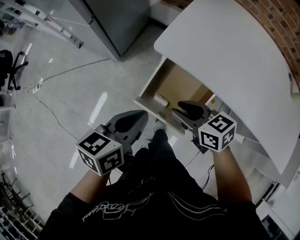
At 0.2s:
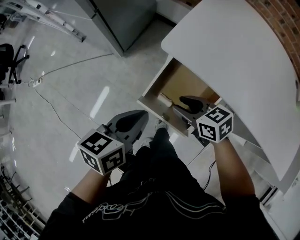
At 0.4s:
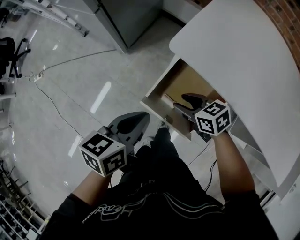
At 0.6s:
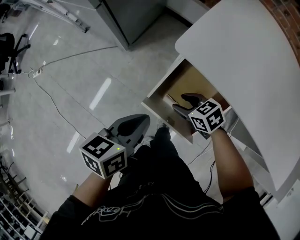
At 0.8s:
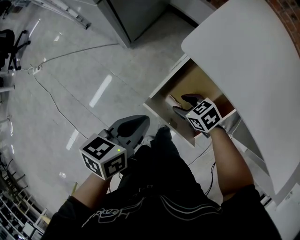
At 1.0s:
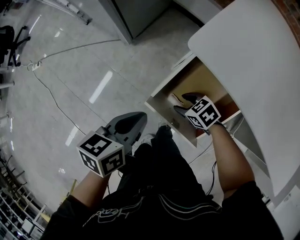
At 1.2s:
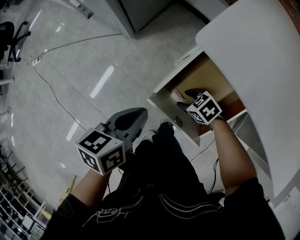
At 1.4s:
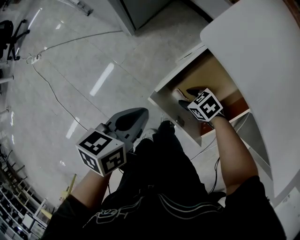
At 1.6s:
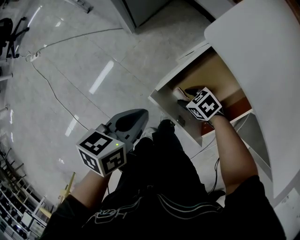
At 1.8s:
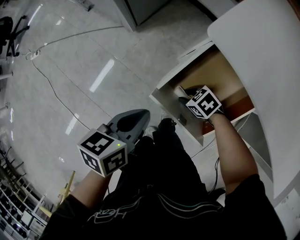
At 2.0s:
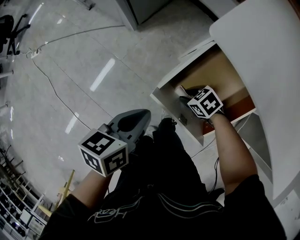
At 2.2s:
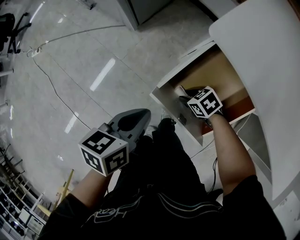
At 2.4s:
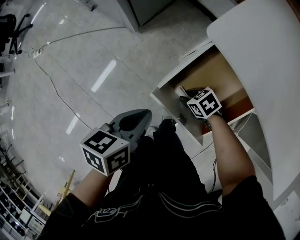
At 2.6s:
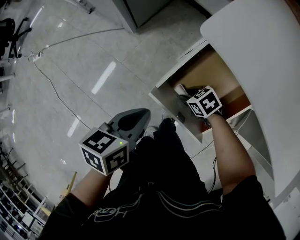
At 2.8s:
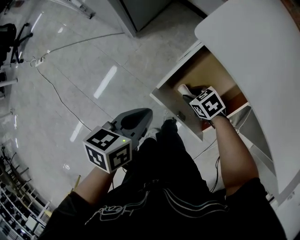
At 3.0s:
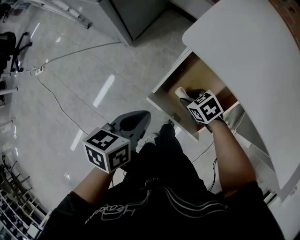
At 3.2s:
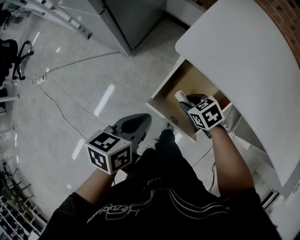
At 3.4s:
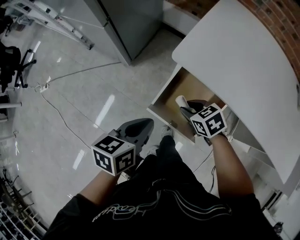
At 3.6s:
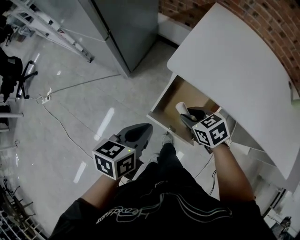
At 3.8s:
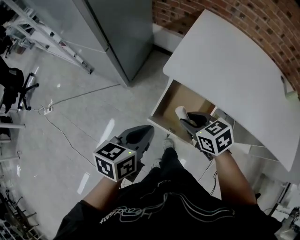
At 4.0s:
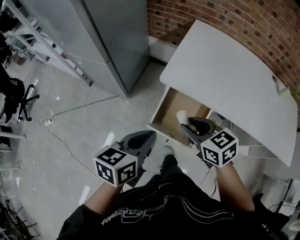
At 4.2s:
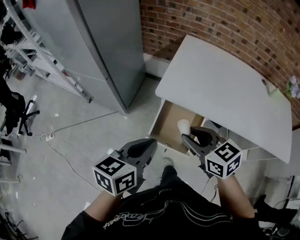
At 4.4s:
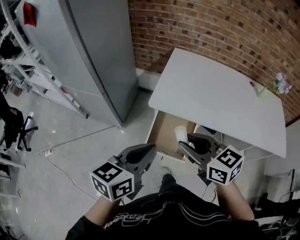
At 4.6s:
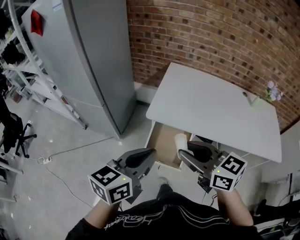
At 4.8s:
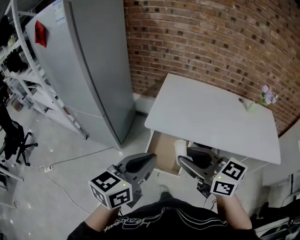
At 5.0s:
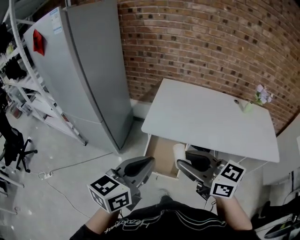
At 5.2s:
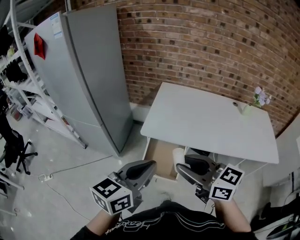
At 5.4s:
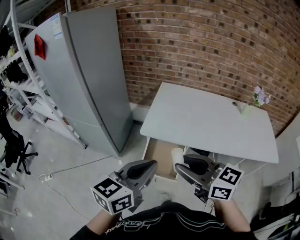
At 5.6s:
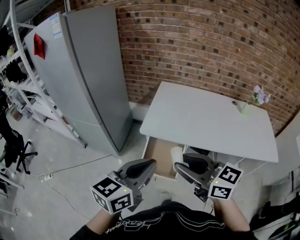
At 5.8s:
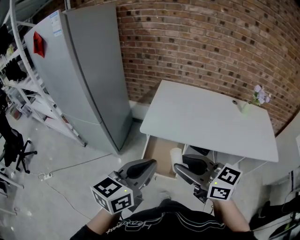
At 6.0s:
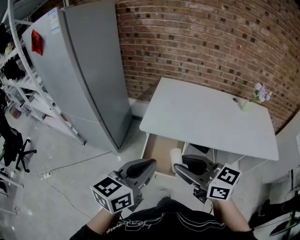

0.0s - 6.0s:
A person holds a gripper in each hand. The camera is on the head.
0.0s - 1.6s: The right gripper moves downward, roughly 35 cm, and turns by approximately 40 degrees; the left gripper shifts roughly 20 cm downward.
1.6s - 3.0s: The left gripper travels upward by about 5 cm. The right gripper shifts about 10 cm upward, and closes its fingers.
3.0s - 4.4s: Both grippers move upward, approximately 40 cm. The left gripper turns by roughly 40 degrees. The right gripper angles its fingers upward, by about 40 degrees.
4.4s - 6.0s: The two grippers go about 10 cm upward and backward.

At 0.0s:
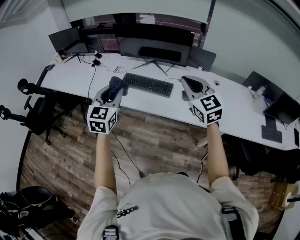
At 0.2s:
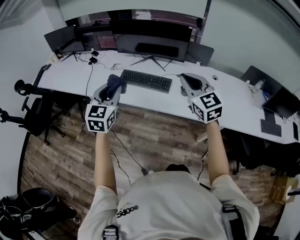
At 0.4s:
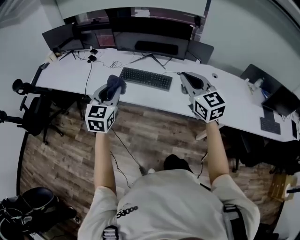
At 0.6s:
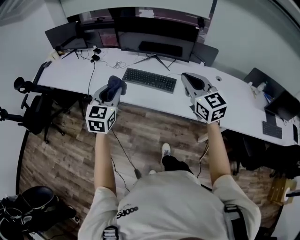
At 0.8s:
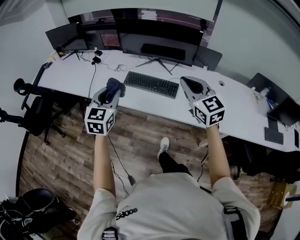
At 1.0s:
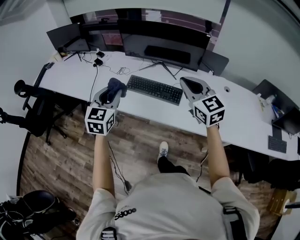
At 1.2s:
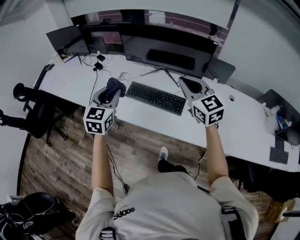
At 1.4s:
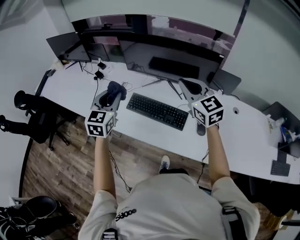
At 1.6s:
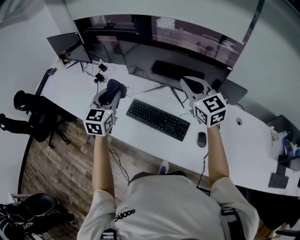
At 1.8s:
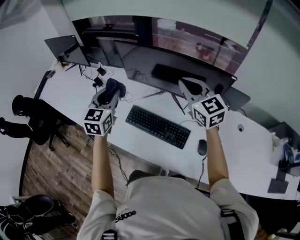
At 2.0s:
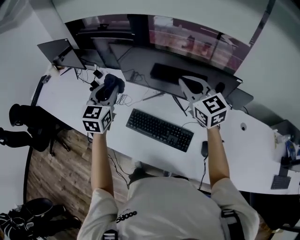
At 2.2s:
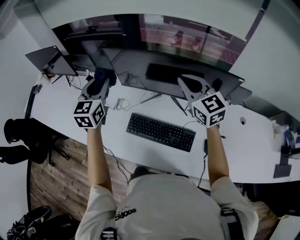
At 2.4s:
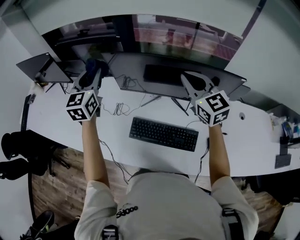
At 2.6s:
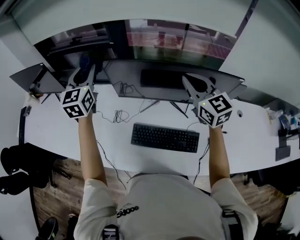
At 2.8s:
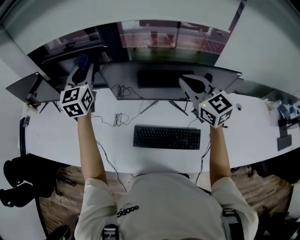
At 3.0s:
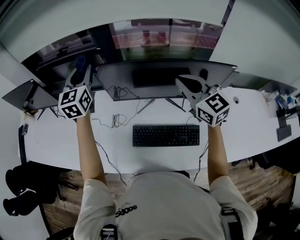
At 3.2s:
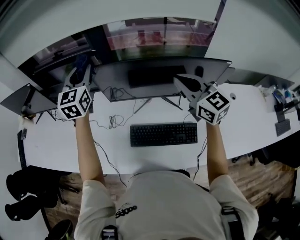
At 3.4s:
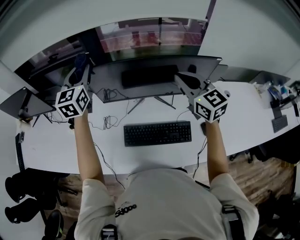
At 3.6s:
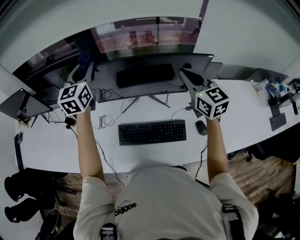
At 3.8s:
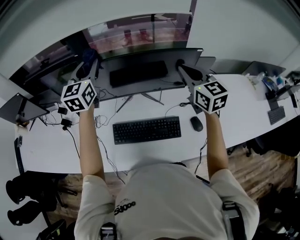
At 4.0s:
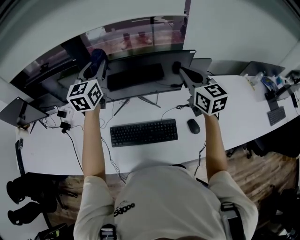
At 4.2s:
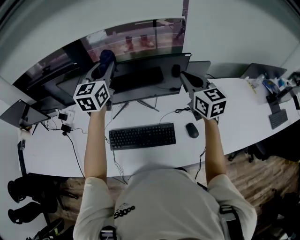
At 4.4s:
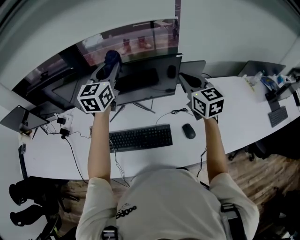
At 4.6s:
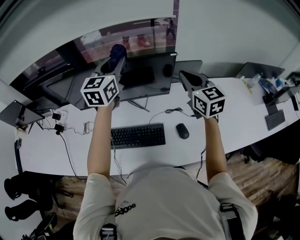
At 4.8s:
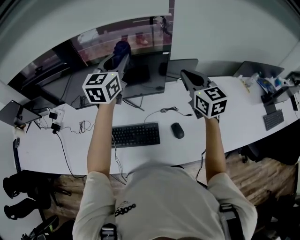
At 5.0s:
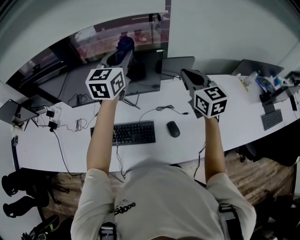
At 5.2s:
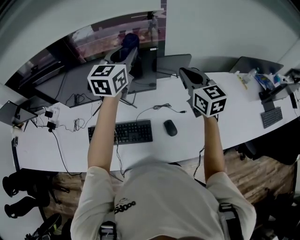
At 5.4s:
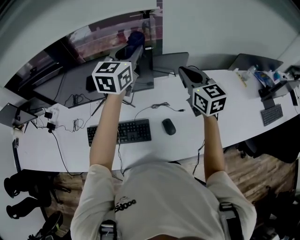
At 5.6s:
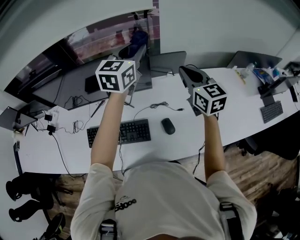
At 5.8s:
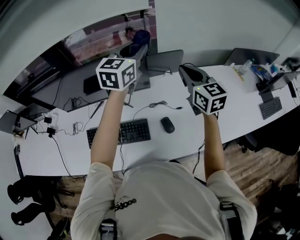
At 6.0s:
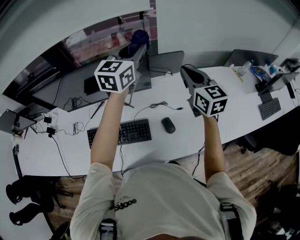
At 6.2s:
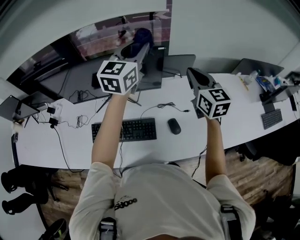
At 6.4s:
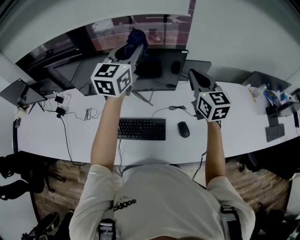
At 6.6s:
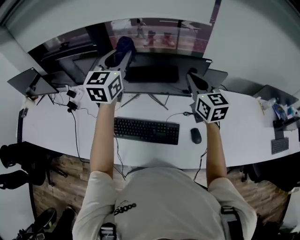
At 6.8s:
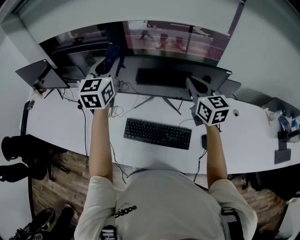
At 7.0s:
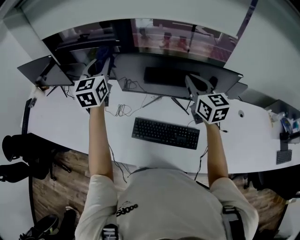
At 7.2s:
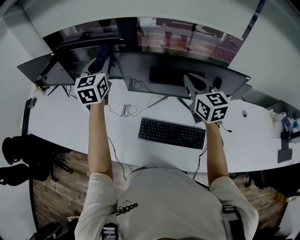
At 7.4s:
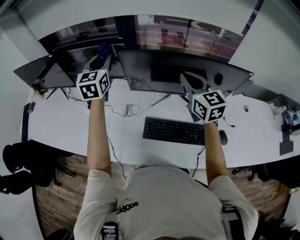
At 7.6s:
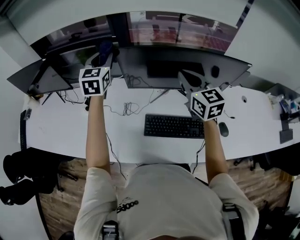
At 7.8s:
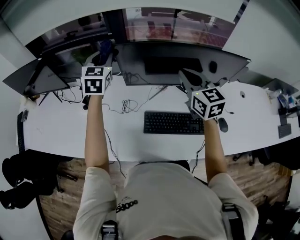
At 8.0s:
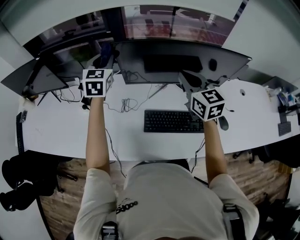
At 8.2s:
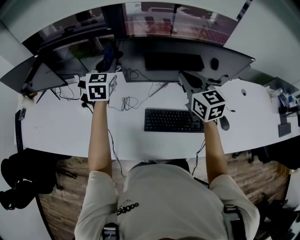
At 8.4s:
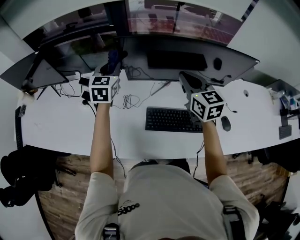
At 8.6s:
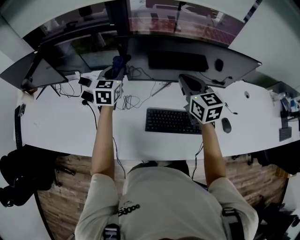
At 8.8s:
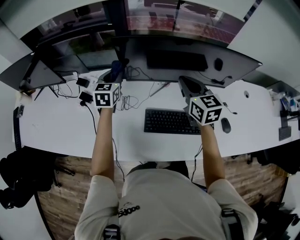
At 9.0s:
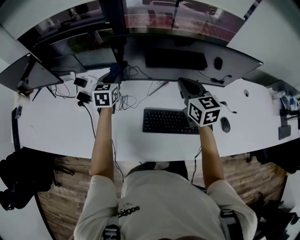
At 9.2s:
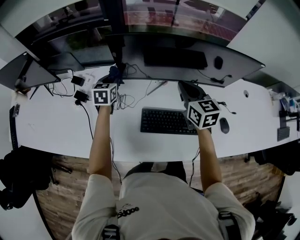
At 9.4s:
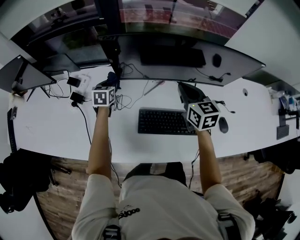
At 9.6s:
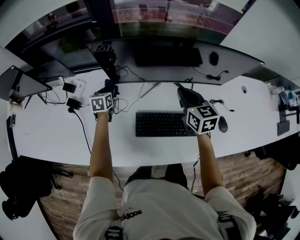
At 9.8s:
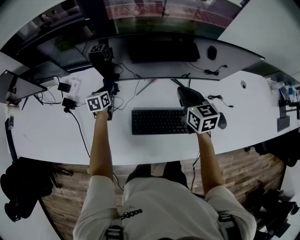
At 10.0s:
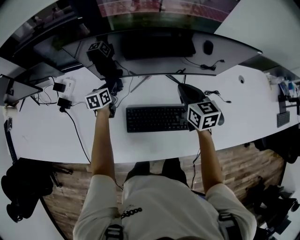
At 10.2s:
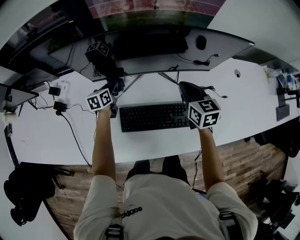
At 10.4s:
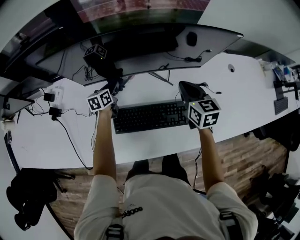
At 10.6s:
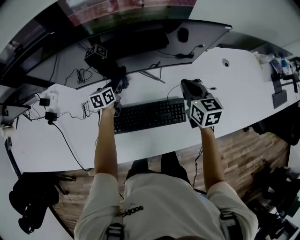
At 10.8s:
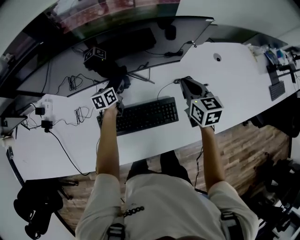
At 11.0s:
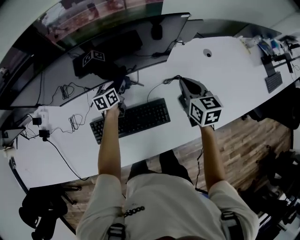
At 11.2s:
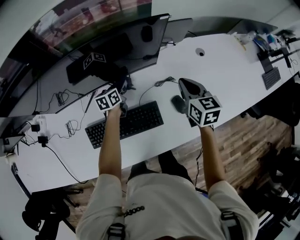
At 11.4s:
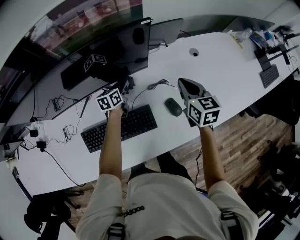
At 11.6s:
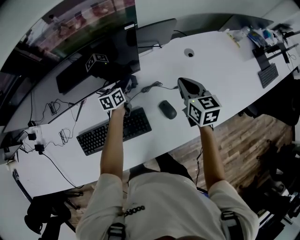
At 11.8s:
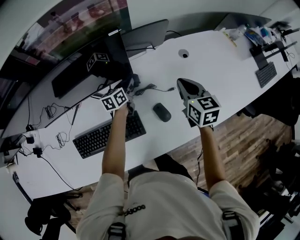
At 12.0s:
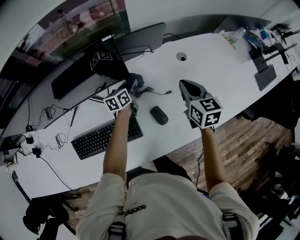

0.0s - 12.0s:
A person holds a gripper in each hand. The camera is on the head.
0.0s - 1.6s: The two grippers go roughly 40 cm forward.
1.6s - 3.0s: The left gripper moves forward, roughly 35 cm, while the right gripper is displaced forward by about 15 cm.
3.0s - 4.4s: Both grippers move to the right, some 30 cm. The left gripper turns by some 20 degrees, while the right gripper swivels about 20 degrees.
4.4s - 6.0s: The right gripper is displaced to the right by approximately 15 cm; the left gripper moves to the right, roughly 25 cm.
6.0s - 7.6s: Both grippers are carried approximately 60 cm. The left gripper changes its angle by approximately 40 degrees.
7.6s - 9.0s: The left gripper goes some 20 cm downward, and changes its angle by approximately 20 degrees. Meanwhile the right gripper heads downward, covering approximately 10 cm.
9.0s - 10.4s: The two grippers go approximately 25 cm to the right and downward. The left gripper swivels approximately 30 degrees.
10.4s - 12.0s: Both grippers move to the right, approximately 40 cm.

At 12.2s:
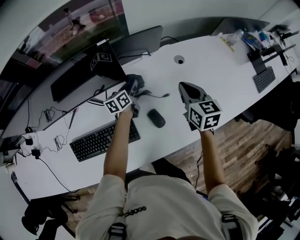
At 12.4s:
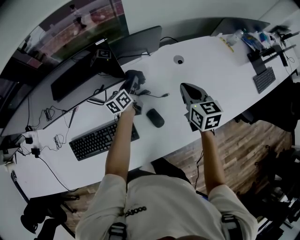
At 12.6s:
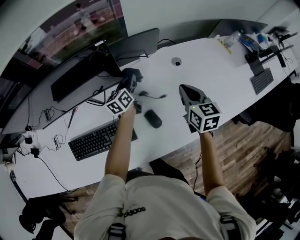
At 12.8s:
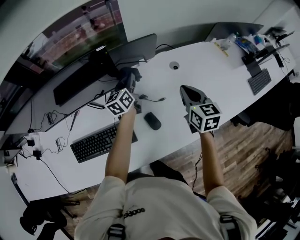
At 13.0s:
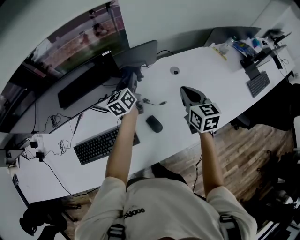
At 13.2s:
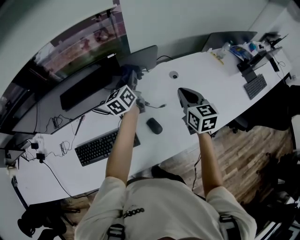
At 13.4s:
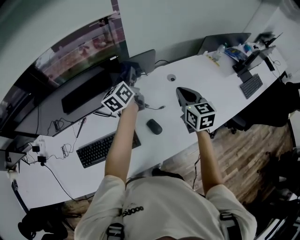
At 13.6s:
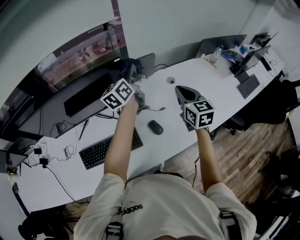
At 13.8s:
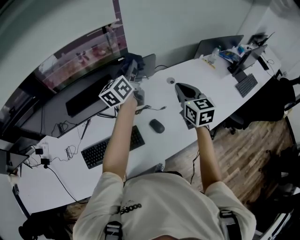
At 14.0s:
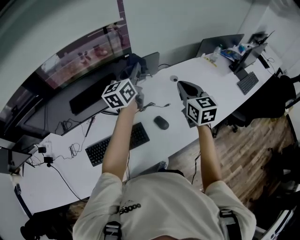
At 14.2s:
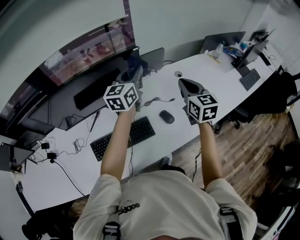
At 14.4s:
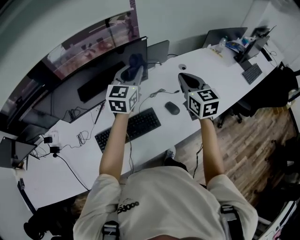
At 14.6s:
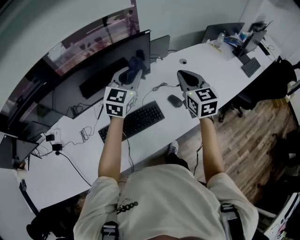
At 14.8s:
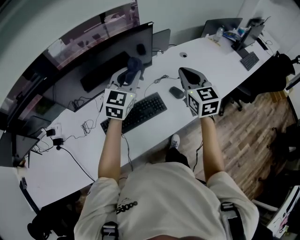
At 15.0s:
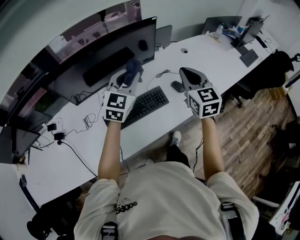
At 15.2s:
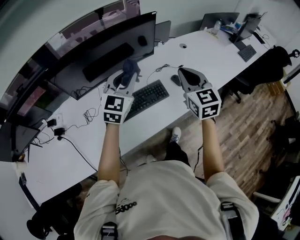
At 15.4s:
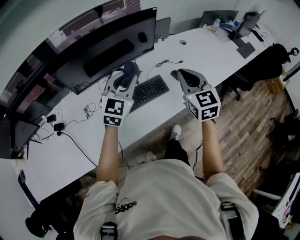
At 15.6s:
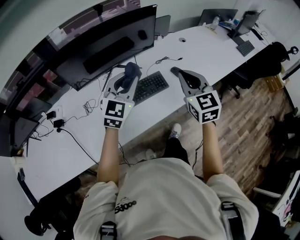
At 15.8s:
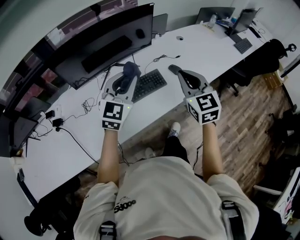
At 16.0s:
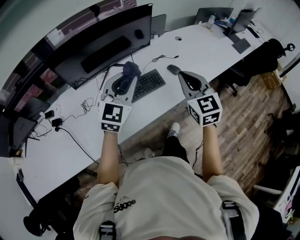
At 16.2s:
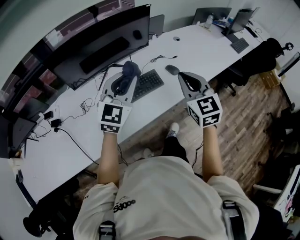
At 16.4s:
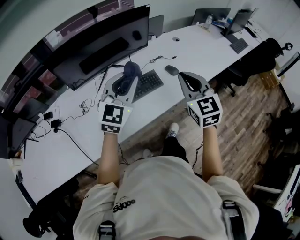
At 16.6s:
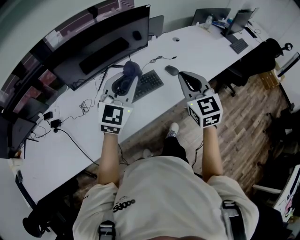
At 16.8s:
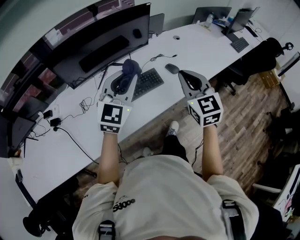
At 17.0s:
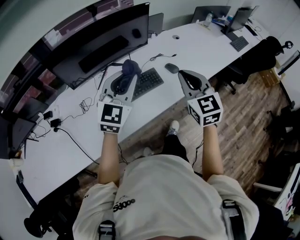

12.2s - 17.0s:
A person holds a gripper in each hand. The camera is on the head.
12.2s - 13.8s: The right gripper goes about 15 cm upward and backward. Meanwhile the left gripper heads upward, covering about 35 cm, and swivels about 30 degrees.
13.8s - 15.4s: The grippers both shift backward and to the left by about 40 cm. The left gripper rolls clockwise, seen from behind, by approximately 50 degrees.
15.4s - 17.0s: The grippers both shift backward by approximately 10 cm.

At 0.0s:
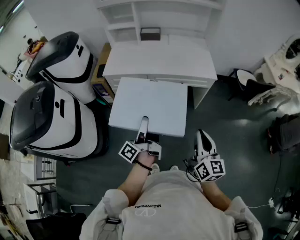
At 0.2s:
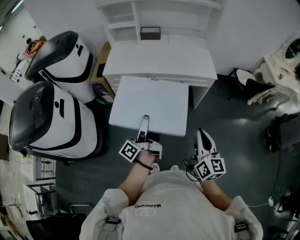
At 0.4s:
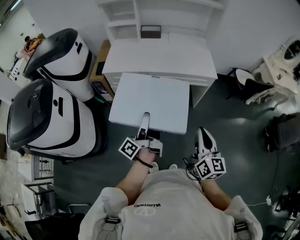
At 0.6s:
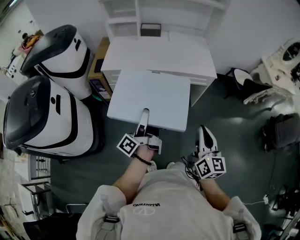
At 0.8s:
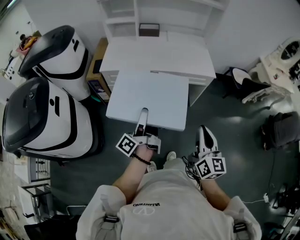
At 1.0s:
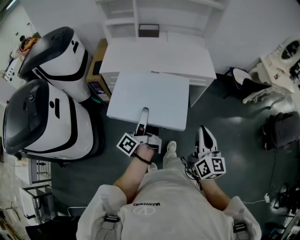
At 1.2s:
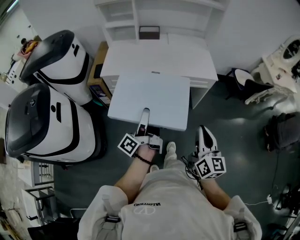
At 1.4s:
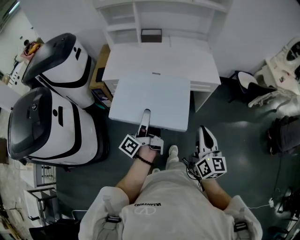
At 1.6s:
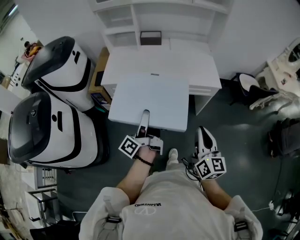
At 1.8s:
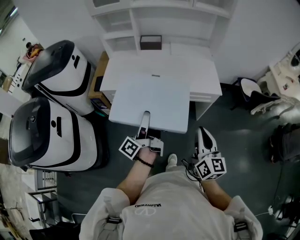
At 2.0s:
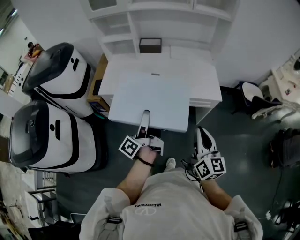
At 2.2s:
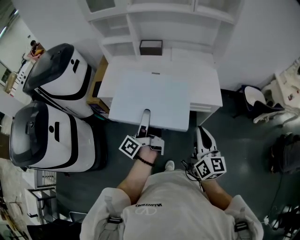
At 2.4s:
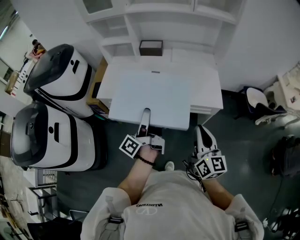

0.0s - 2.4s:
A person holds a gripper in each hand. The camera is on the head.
0.0s - 1.2s: The left gripper shifts some 5 cm forward.
1.2s - 2.4s: Both grippers travel together forward and to the right, about 25 cm.
